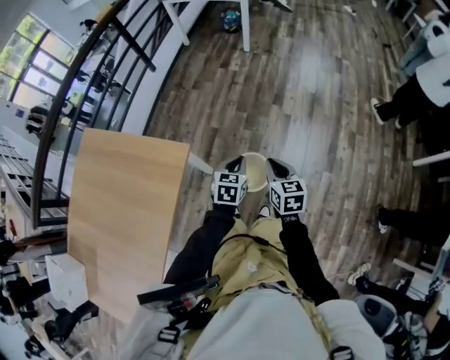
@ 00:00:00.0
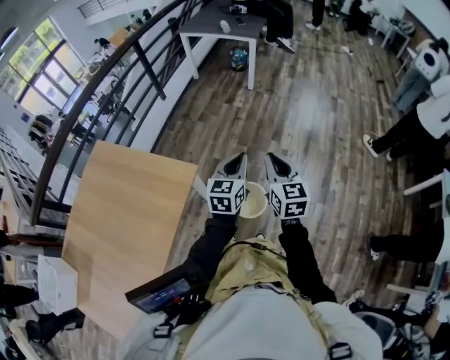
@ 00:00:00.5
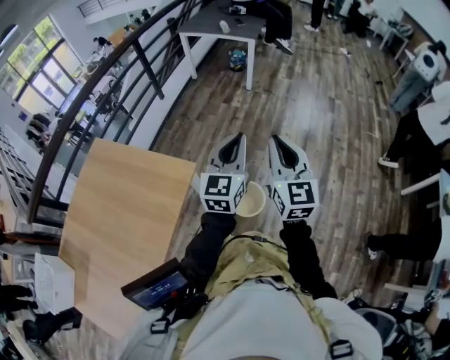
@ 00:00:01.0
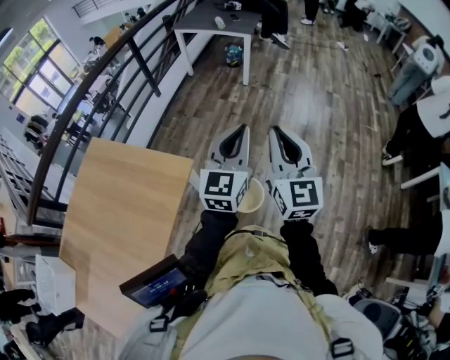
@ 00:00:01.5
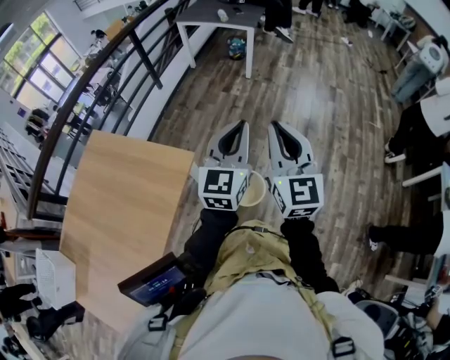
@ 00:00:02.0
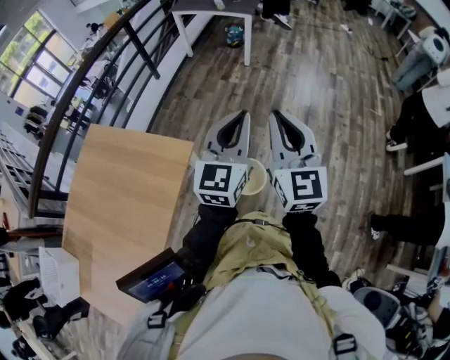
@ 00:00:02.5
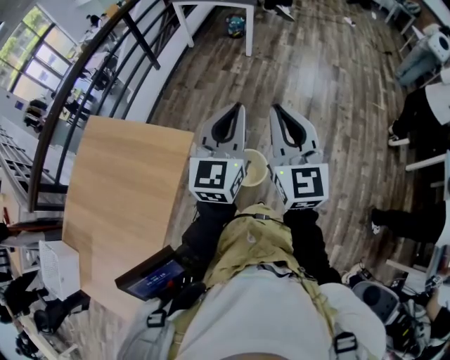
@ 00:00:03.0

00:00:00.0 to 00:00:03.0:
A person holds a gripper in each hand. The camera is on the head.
00:00:00.0 to 00:00:01.5: Both grippers travel together upward, about 30 cm. The right gripper points its fingers about 40 degrees further upward. Meanwhile the left gripper tilts its fingers some 40 degrees upward.
00:00:01.5 to 00:00:03.0: The grippers make only small movements.

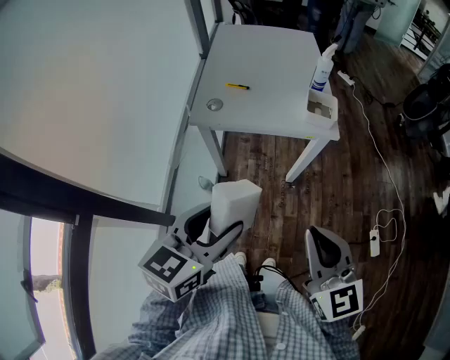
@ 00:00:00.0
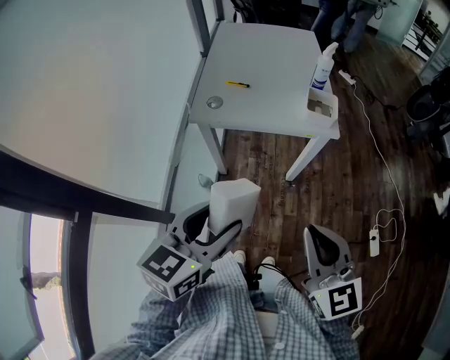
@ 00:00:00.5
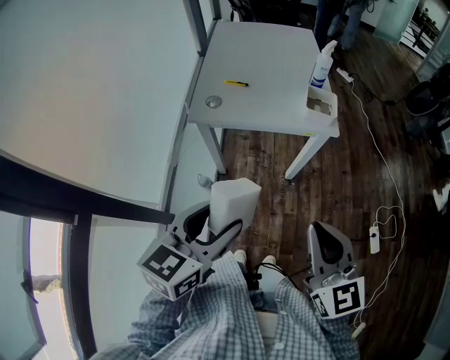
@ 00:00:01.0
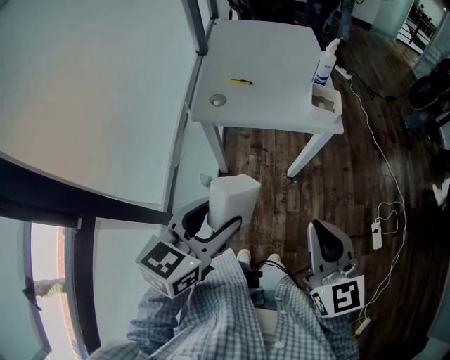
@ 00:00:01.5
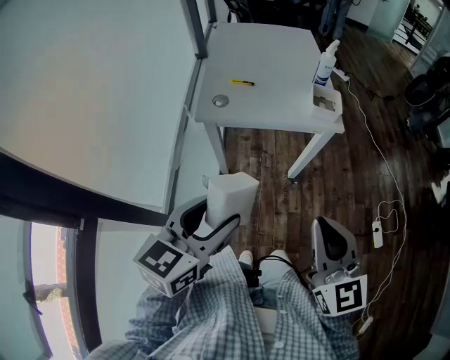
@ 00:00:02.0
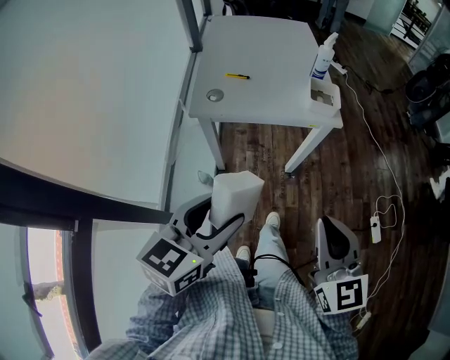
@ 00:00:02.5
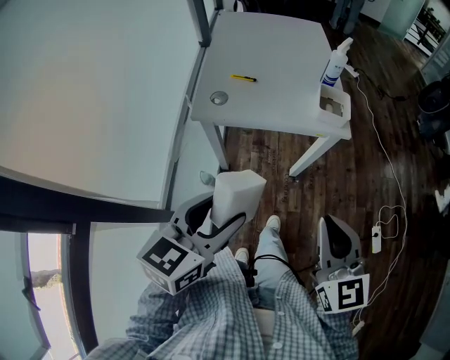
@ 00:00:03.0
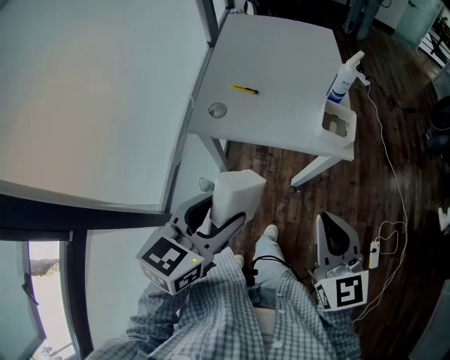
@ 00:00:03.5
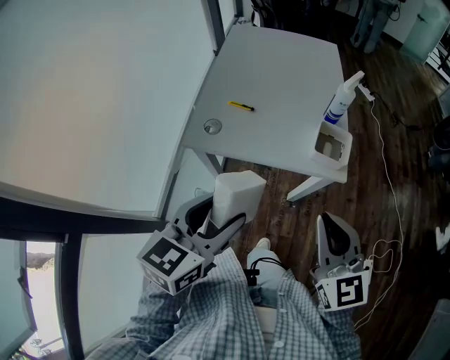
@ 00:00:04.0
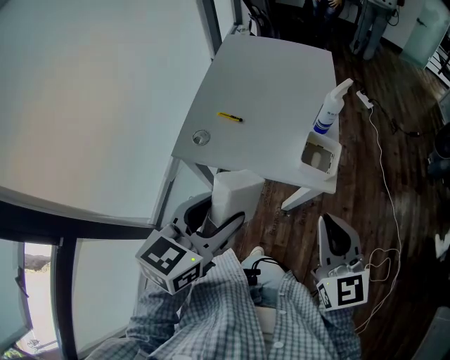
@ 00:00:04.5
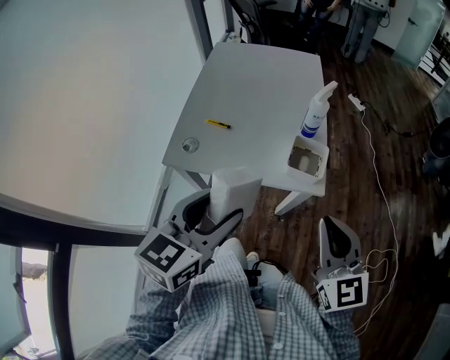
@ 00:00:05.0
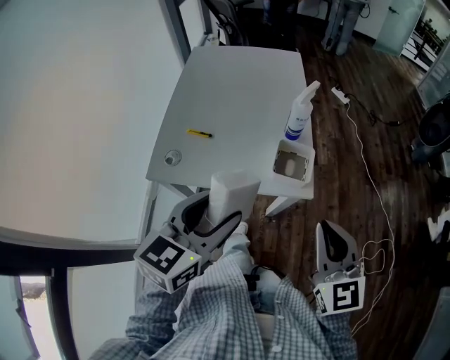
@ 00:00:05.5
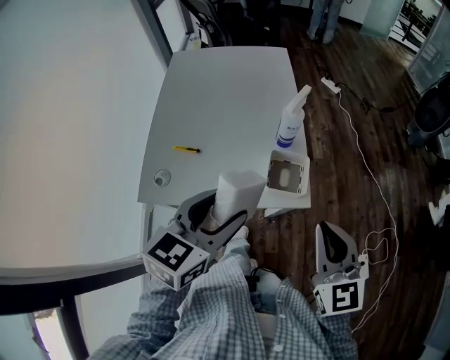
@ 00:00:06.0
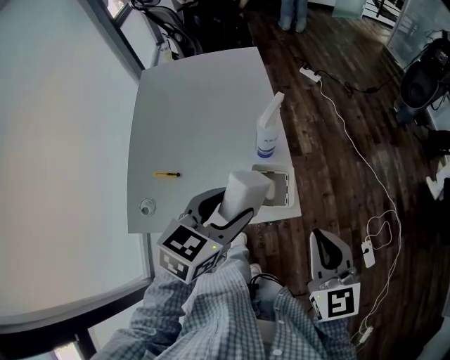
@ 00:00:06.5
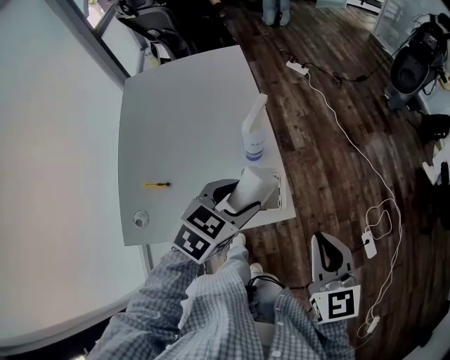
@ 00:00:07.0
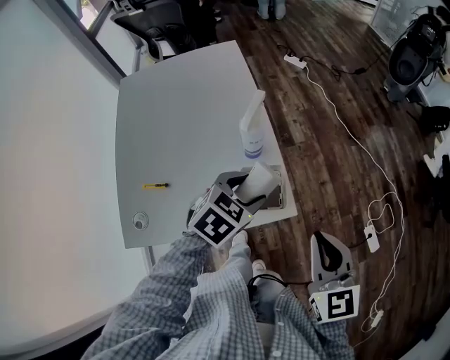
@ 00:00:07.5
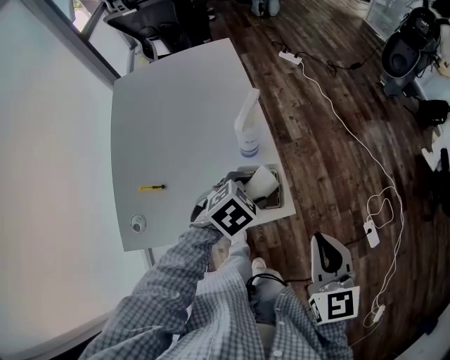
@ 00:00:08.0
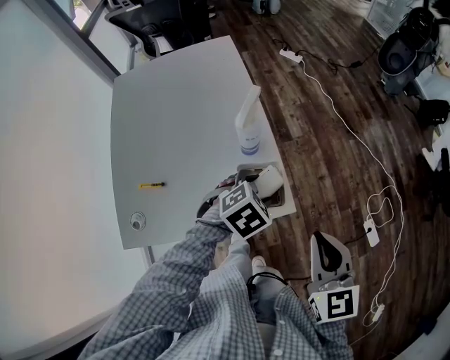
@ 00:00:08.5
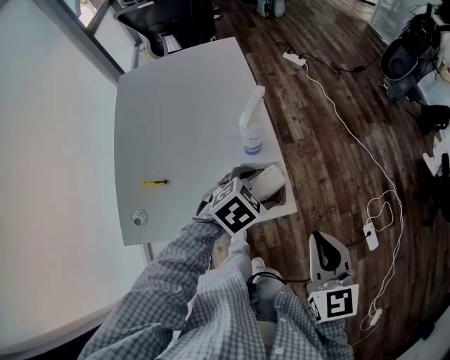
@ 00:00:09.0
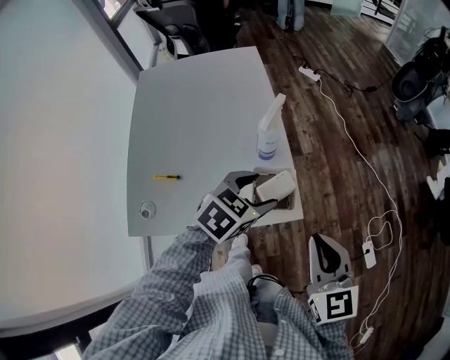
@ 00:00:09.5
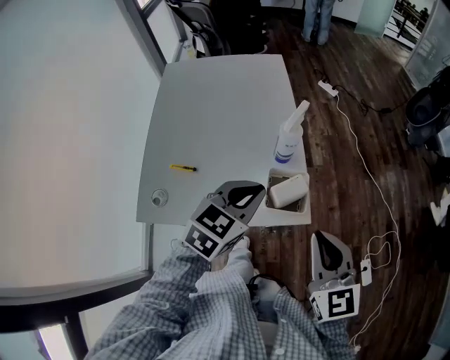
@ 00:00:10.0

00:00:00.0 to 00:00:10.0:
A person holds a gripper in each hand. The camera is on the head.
00:00:00.0 to 00:00:02.0: The left gripper is displaced to the left by approximately 5 cm.
00:00:02.0 to 00:00:04.0: The two grippers go some 20 cm forward.
00:00:04.0 to 00:00:06.0: The left gripper travels forward and to the right by about 20 cm; the right gripper is displaced to the right and forward by some 15 cm.
00:00:06.0 to 00:00:08.0: The right gripper changes place by about 5 cm. Meanwhile the left gripper heads downward, forward and to the right, covering roughly 25 cm, and points its fingers approximately 40 degrees further downward.
00:00:08.0 to 00:00:10.0: The left gripper goes approximately 10 cm upward and to the left, turns by about 40 degrees, and closes up. The right gripper goes roughly 5 cm to the left.

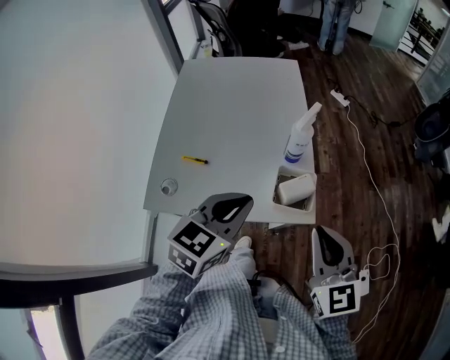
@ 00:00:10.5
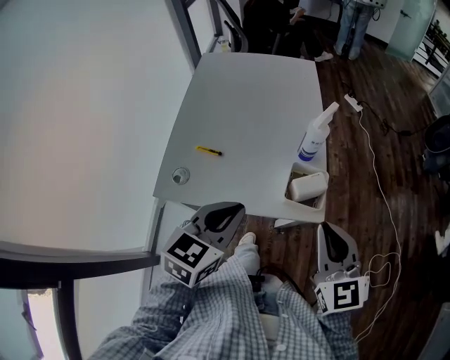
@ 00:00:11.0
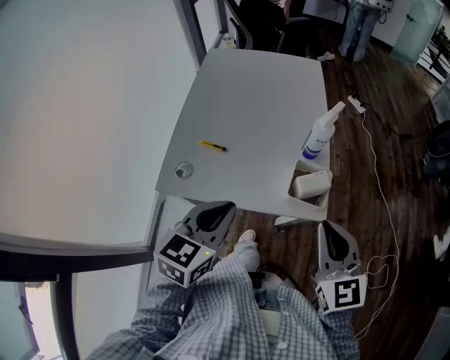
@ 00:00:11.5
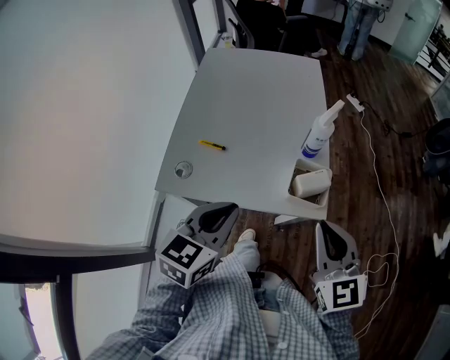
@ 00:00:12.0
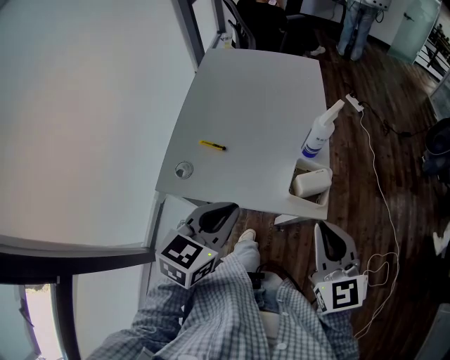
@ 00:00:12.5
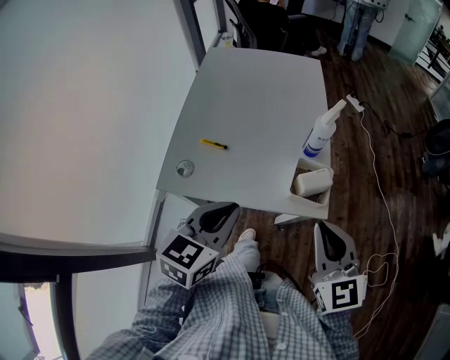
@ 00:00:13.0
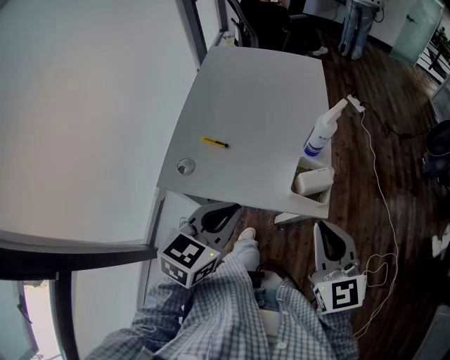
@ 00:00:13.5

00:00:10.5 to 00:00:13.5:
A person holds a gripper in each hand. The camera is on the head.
00:00:10.5 to 00:00:12.0: The left gripper travels to the left and backward by roughly 10 cm.
00:00:12.0 to 00:00:13.5: There are only small adjustments of the grippers.

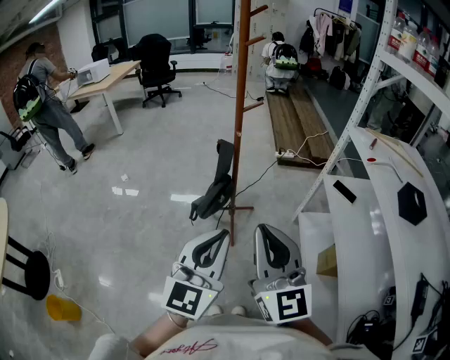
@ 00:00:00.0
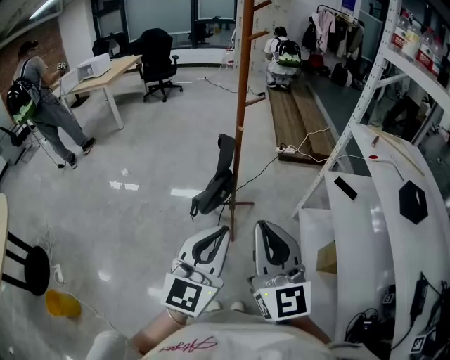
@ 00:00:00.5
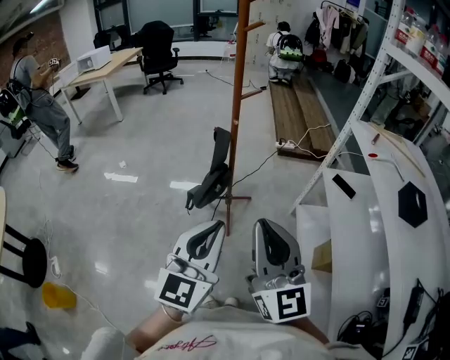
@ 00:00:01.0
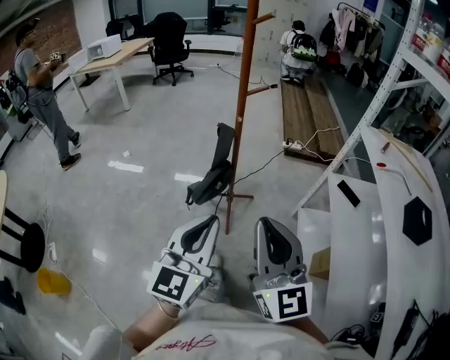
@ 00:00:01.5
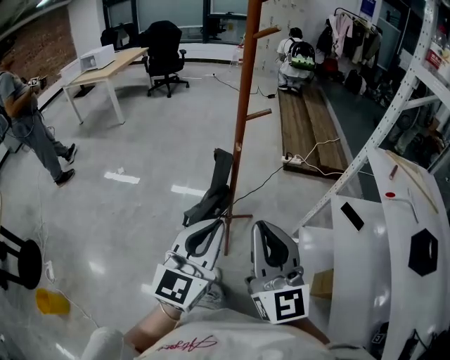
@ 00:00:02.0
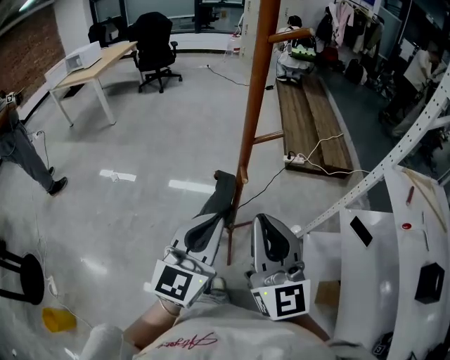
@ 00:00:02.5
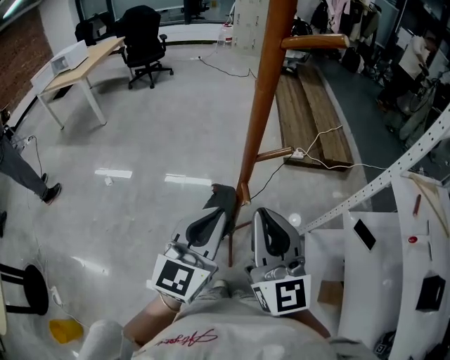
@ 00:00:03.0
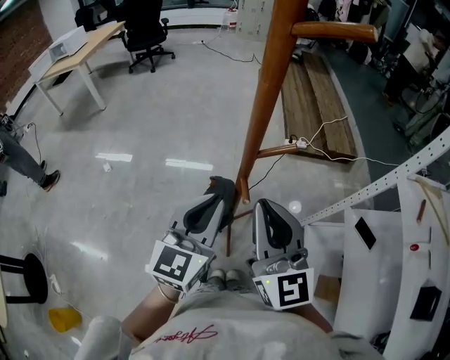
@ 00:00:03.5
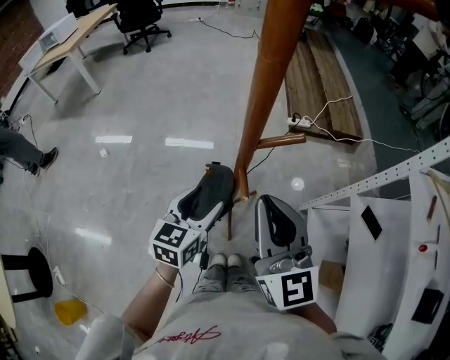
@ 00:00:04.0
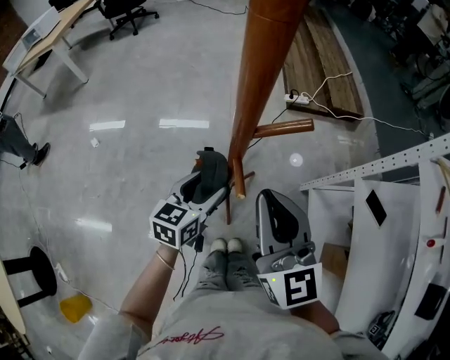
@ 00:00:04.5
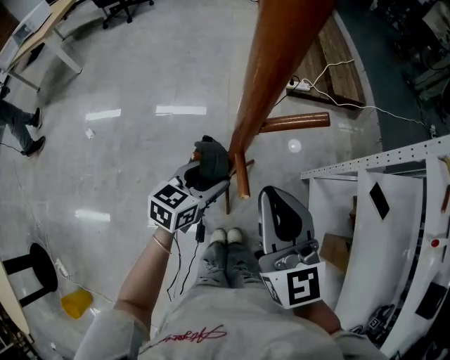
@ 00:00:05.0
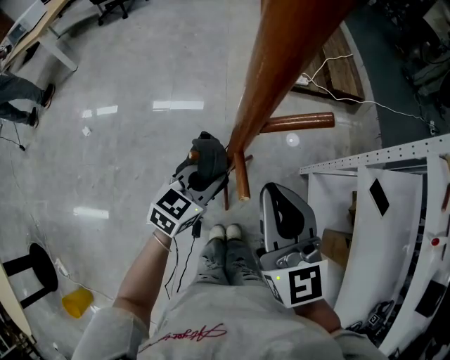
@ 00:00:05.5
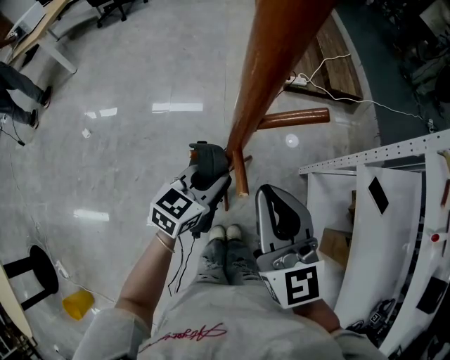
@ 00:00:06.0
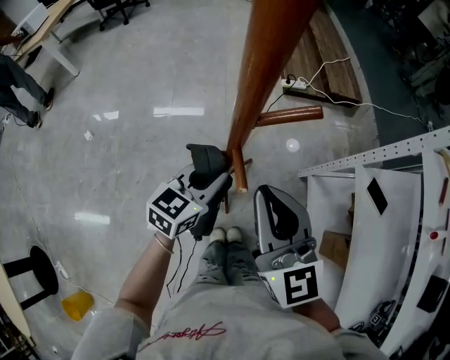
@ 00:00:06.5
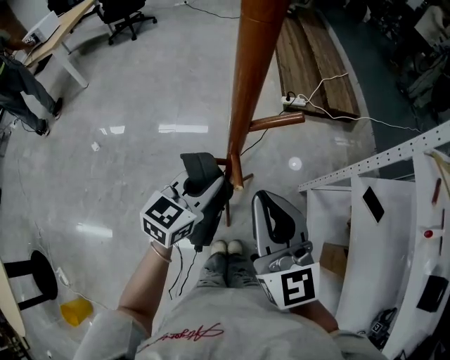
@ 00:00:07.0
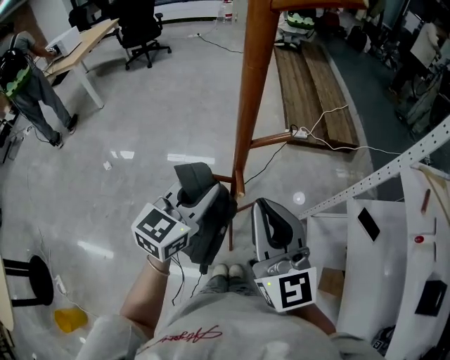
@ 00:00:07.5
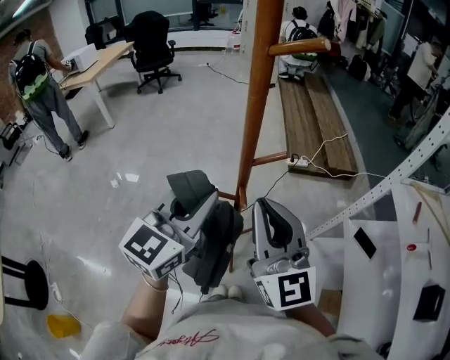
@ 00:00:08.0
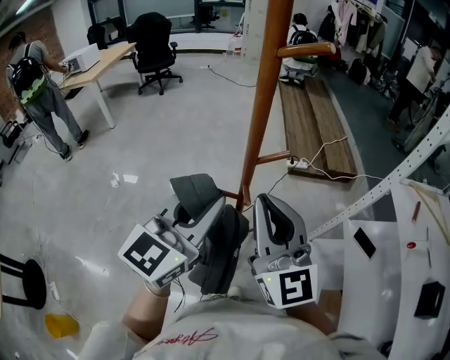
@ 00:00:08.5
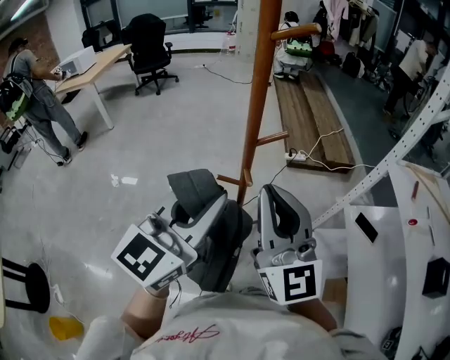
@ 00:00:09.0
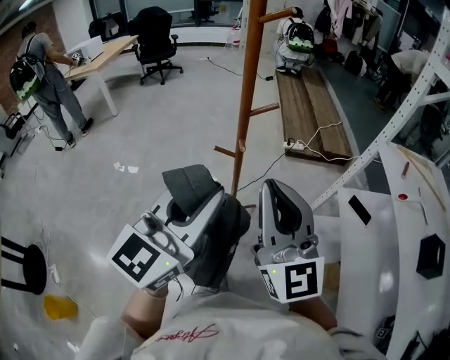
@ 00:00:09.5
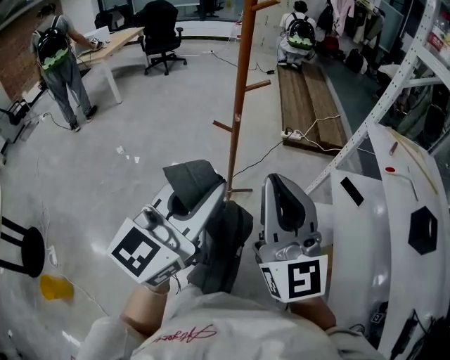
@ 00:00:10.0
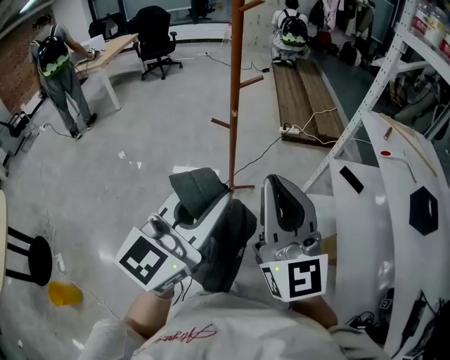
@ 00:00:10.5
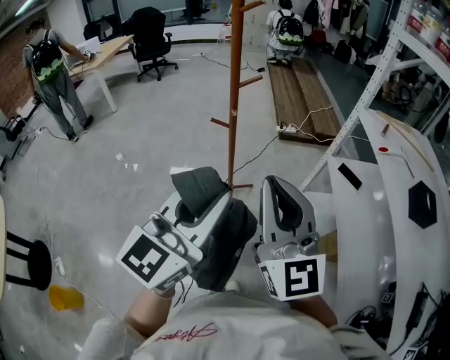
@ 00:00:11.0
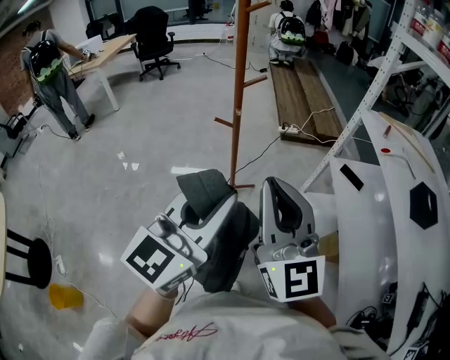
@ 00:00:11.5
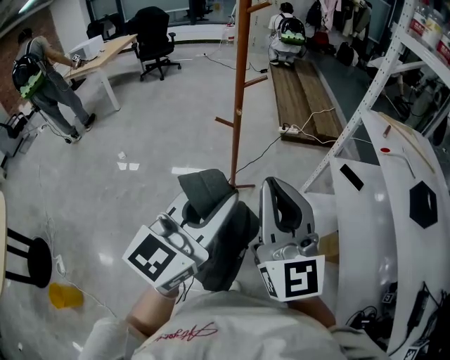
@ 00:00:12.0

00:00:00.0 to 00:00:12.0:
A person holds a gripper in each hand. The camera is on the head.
00:00:00.0 to 00:00:02.0: The grippers both shift forward by roughly 15 cm.
00:00:02.0 to 00:00:04.0: The right gripper moves forward, approximately 25 cm, while the left gripper heads forward and downward, covering roughly 35 cm, rotates about 30 degrees, and opens.
00:00:04.0 to 00:00:06.0: The left gripper is displaced downward and to the right by some 10 cm, changes its angle by about 20 degrees, and closes up. The right gripper heads downward, covering about 5 cm.
00:00:06.0 to 00:00:08.0: The left gripper shifts roughly 25 cm upward, and rotates about 30 degrees; the right gripper heads upward, covering approximately 15 cm, and rotates roughly 20 degrees.
00:00:08.0 to 00:00:10.0: The grippers both shift backward by approximately 25 cm.
00:00:10.0 to 00:00:12.0: The grippers both shift backward by roughly 5 cm.
